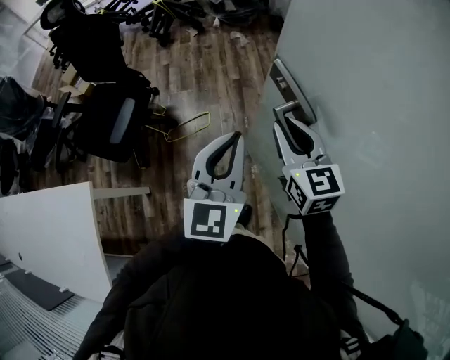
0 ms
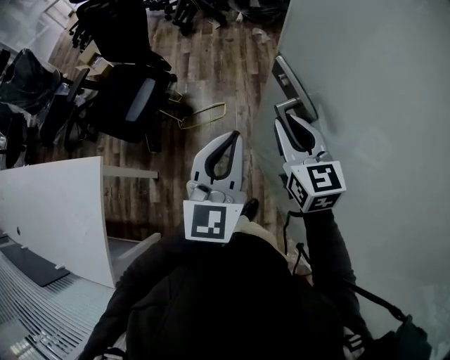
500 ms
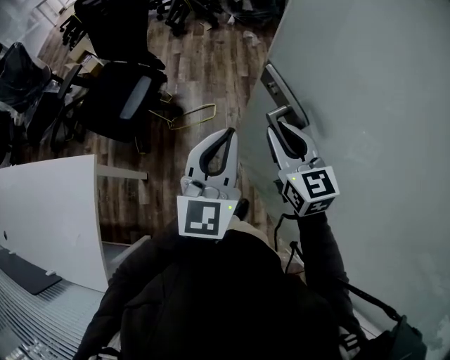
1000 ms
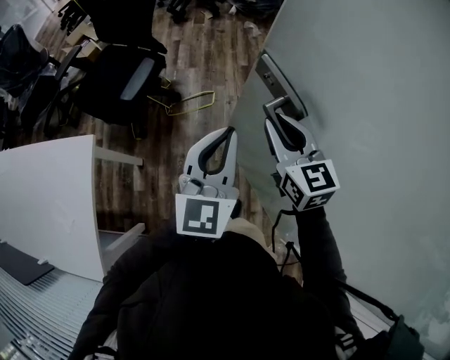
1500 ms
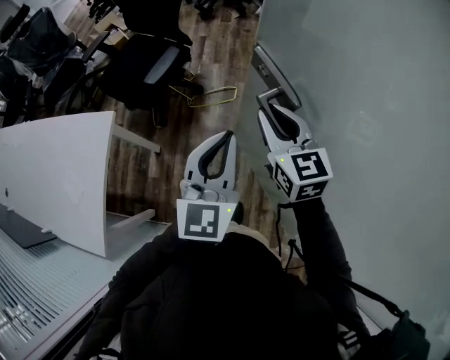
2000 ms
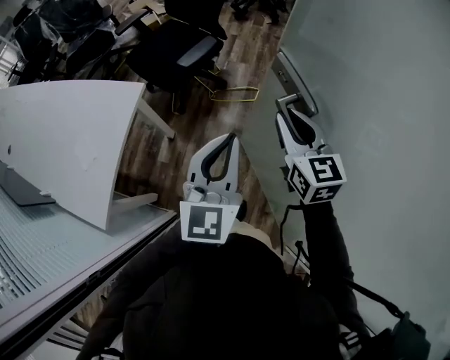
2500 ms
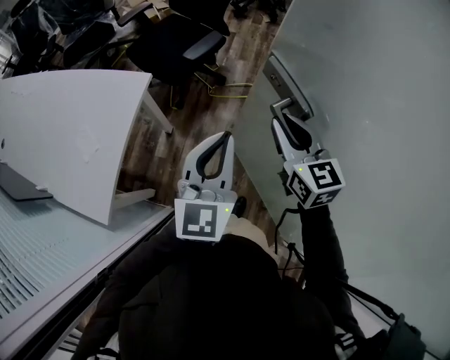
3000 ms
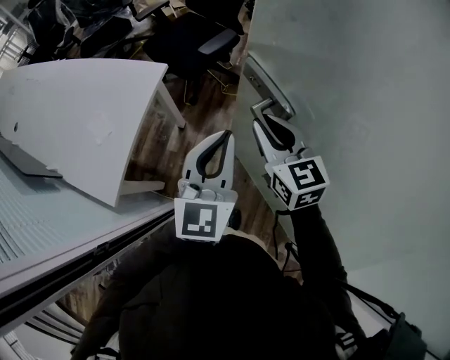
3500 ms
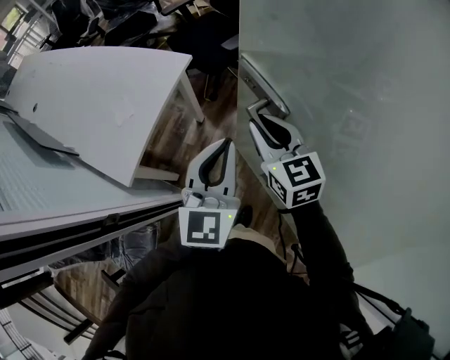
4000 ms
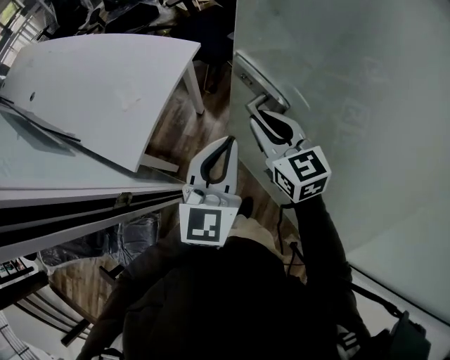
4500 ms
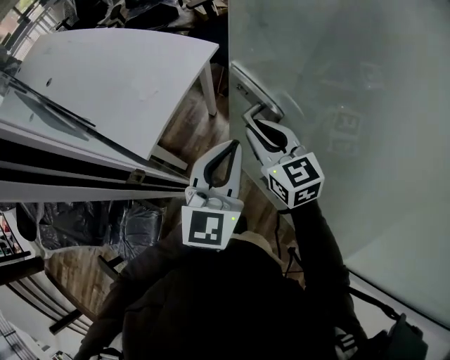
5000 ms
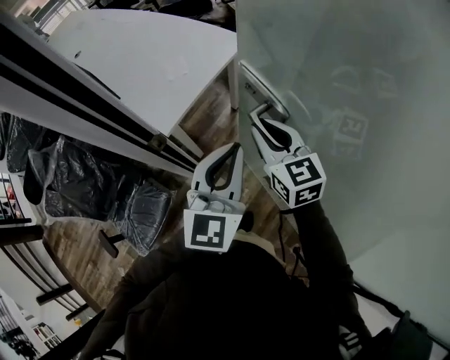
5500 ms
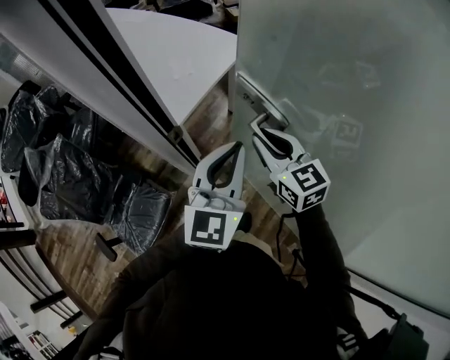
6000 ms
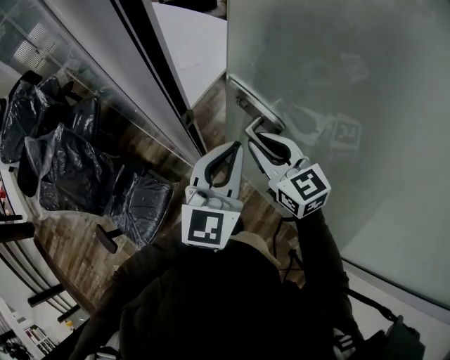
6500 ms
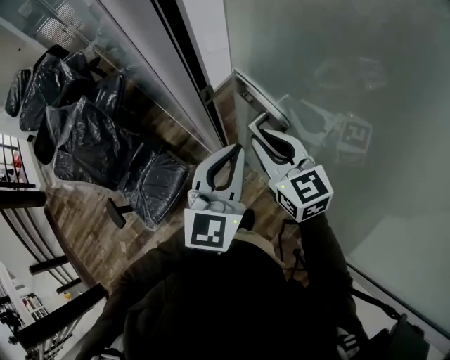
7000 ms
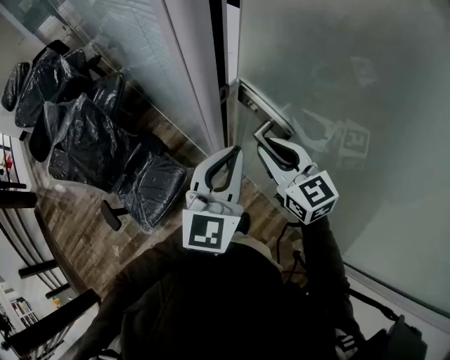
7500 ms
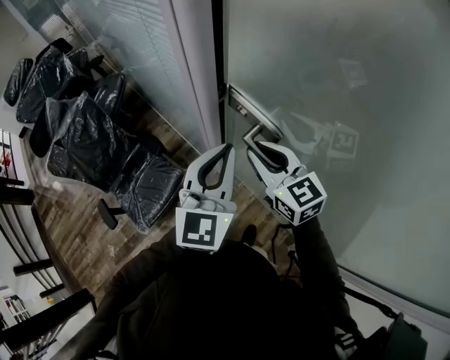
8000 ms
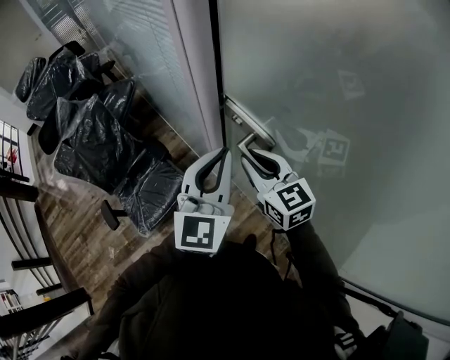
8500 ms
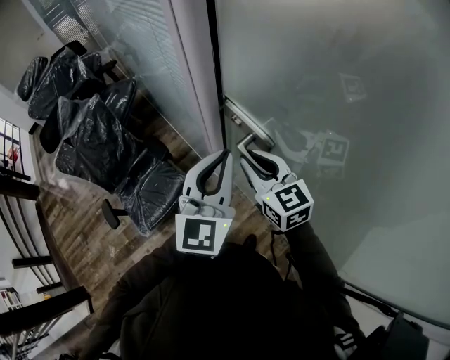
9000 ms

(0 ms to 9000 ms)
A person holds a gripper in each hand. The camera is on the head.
0 ms - 2000 ms: Both grippers travel together to the left and backward, some 25 cm.
2000 ms - 4500 ms: Both grippers move to the left and backward, approximately 35 cm. The right gripper swivels some 30 degrees.
4500 ms - 7000 ms: The grippers both shift to the left and backward by roughly 30 cm. The right gripper rotates approximately 20 degrees.
7000 ms - 9000 ms: The left gripper shifts by roughly 5 cm. The right gripper goes about 5 cm to the left.

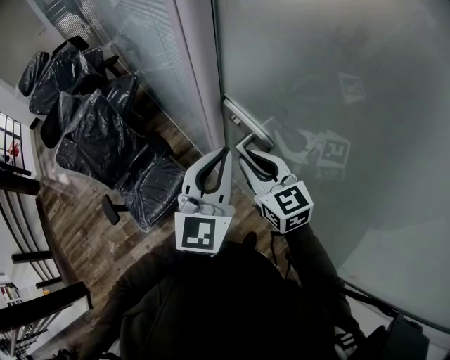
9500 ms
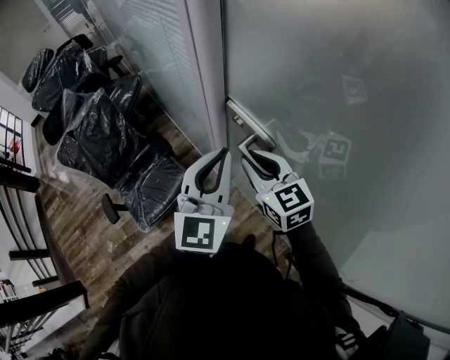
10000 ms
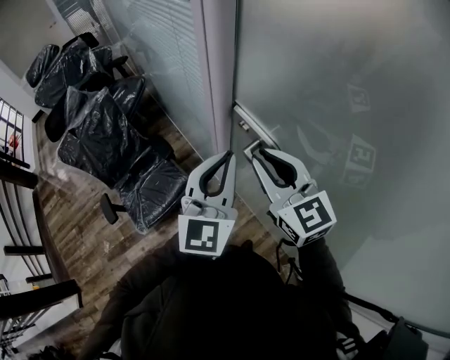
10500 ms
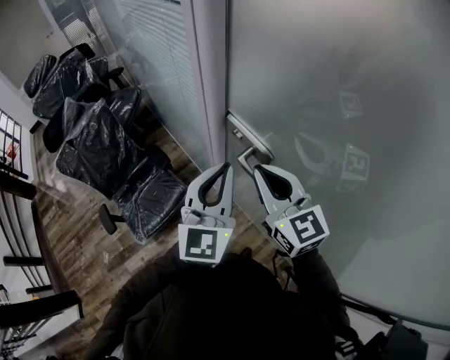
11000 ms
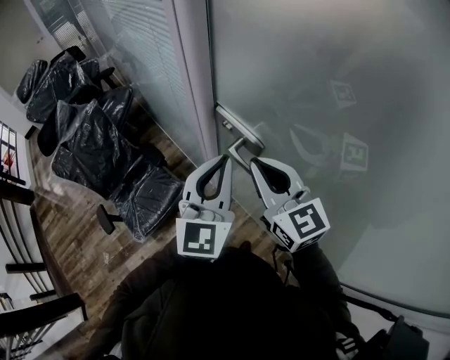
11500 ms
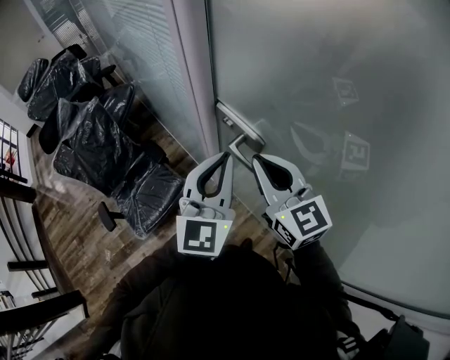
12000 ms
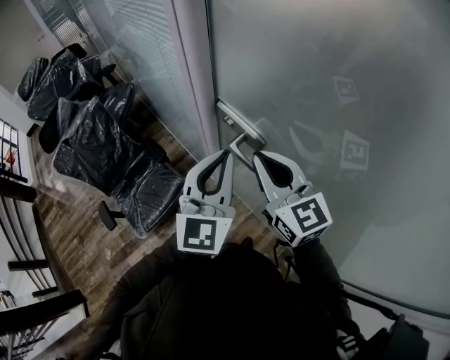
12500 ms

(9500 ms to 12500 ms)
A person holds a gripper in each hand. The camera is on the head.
9500 ms - 11000 ms: The right gripper travels upward by approximately 10 cm.
11000 ms - 12500 ms: There are only small adjustments of the grippers.

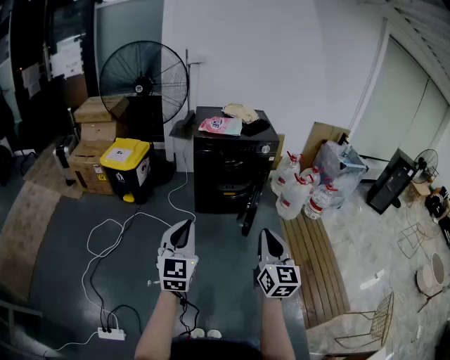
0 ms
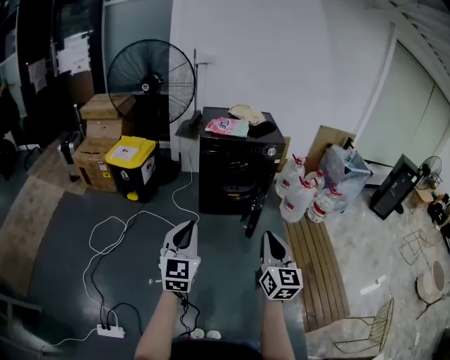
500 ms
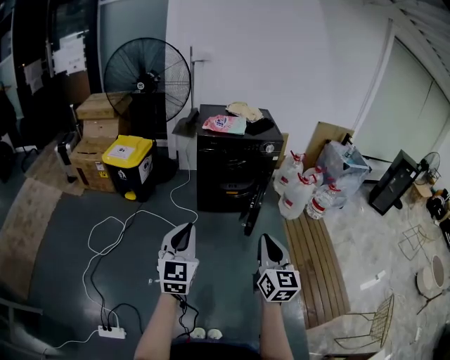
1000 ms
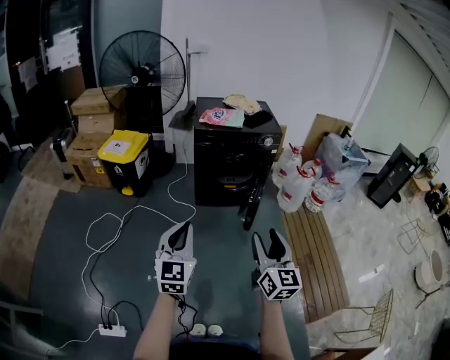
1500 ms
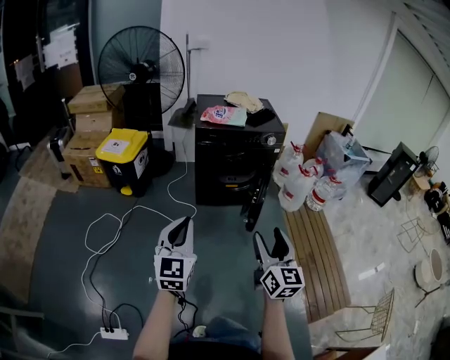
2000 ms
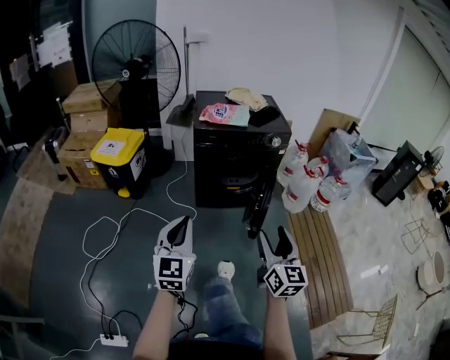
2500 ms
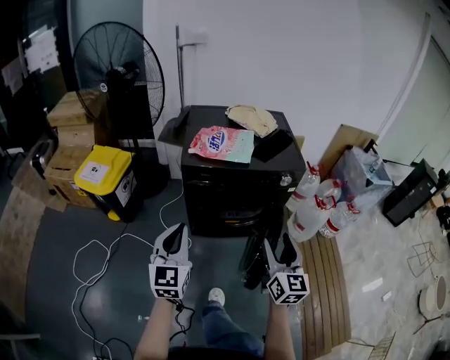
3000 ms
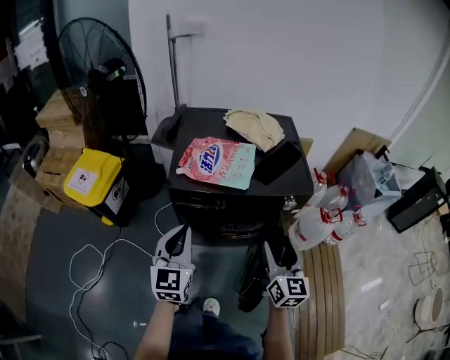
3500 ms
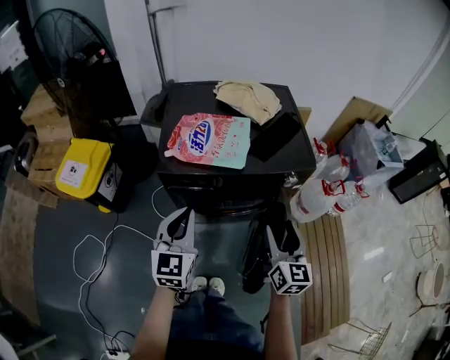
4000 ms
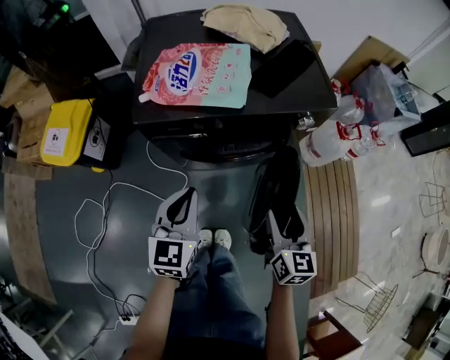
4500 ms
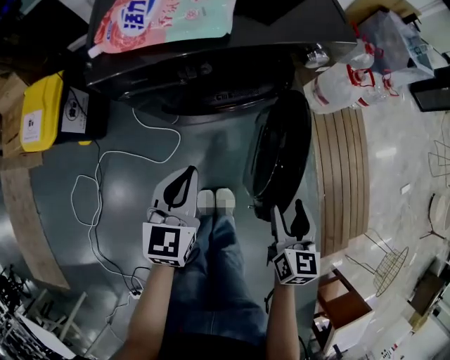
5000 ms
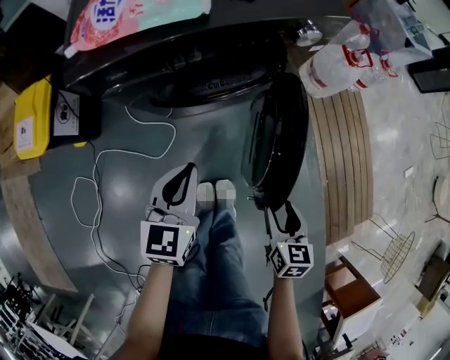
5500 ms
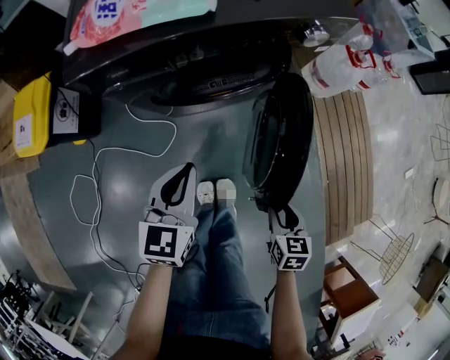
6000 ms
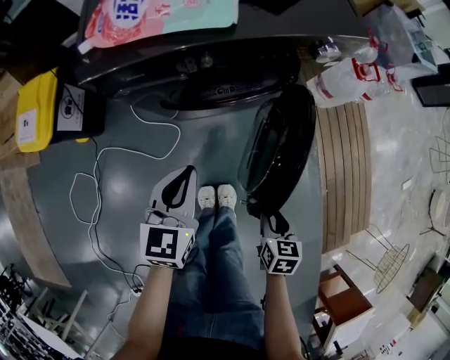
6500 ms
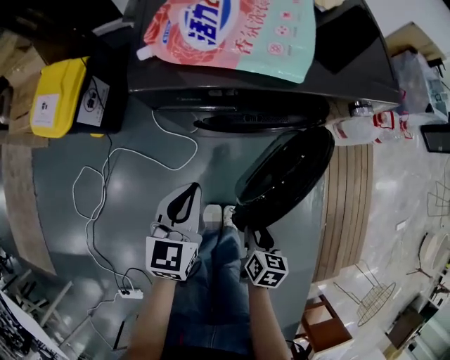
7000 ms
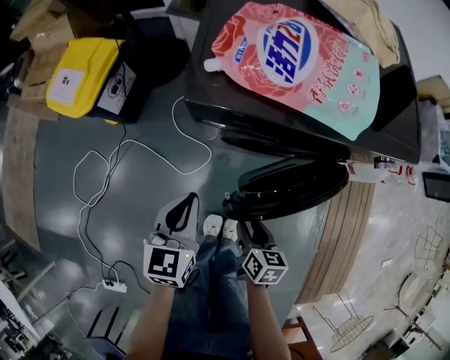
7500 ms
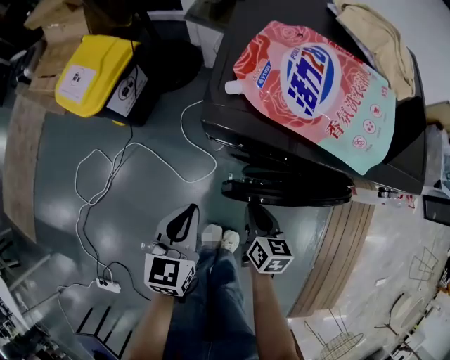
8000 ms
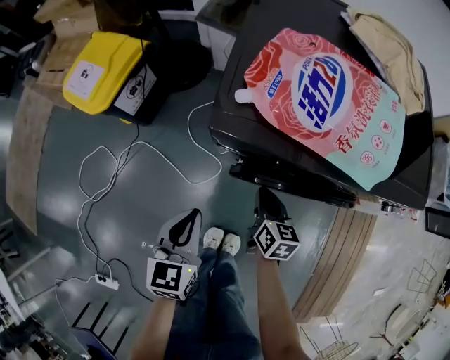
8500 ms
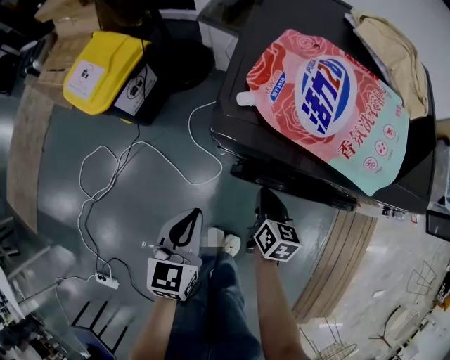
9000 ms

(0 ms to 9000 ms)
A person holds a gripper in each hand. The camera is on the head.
0 ms - 2000 ms: The left gripper changes place by approximately 5 cm; the right gripper moves about 5 cm, and opens up.
2000 ms - 4500 ms: Both grippers are carried forward, approximately 60 cm. The left gripper rotates some 20 degrees. Meanwhile the right gripper is displaced downward by about 20 cm, and turns by some 20 degrees.
4500 ms - 7000 ms: The right gripper goes some 25 cm downward and backward, angles its fingers downward, by roughly 30 degrees, and closes. The left gripper shifts roughly 10 cm downward.
7000 ms - 9000 ms: The left gripper travels to the left by approximately 10 cm, while the right gripper moves forward, some 30 cm, swivels approximately 20 degrees, and closes up.

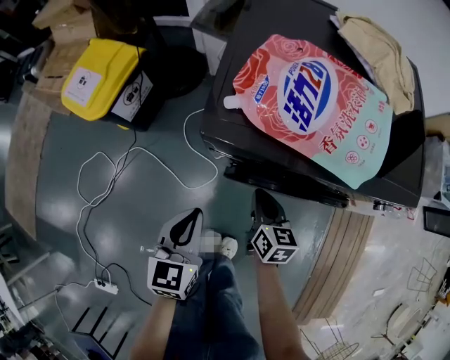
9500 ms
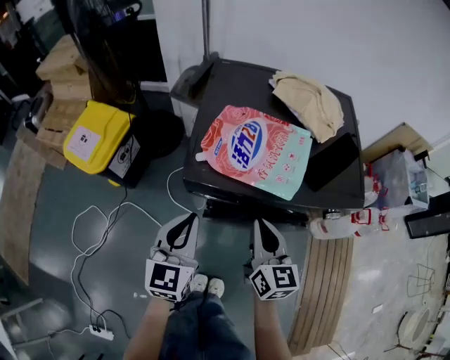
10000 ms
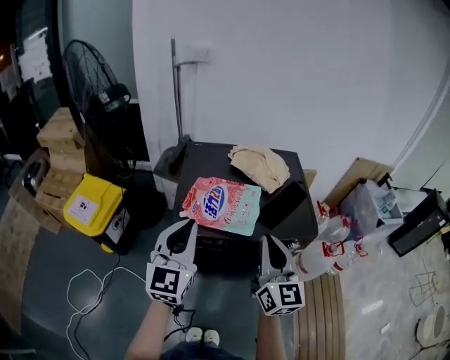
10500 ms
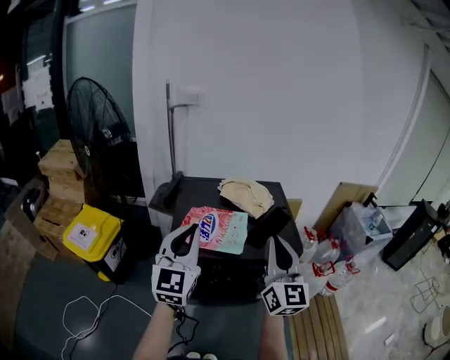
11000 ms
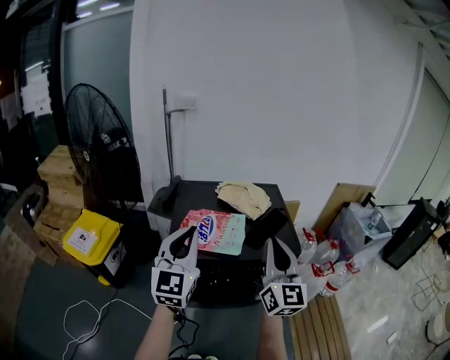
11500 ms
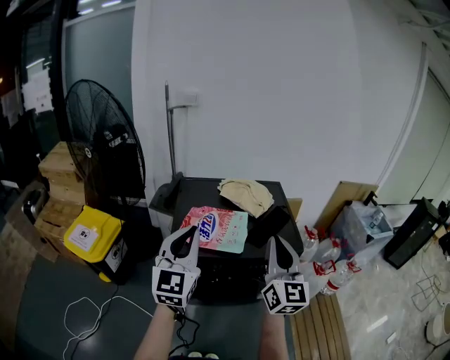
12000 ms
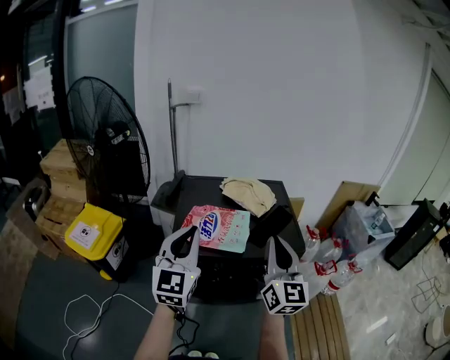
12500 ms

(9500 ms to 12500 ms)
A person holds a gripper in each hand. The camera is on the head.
9500 ms - 11000 ms: Both grippers travel together upward, roughly 50 cm. The right gripper angles its fingers upward, by some 50 degrees; the left gripper tips its fingers upward by approximately 40 degrees.
11000 ms - 12500 ms: The grippers make only small movements.

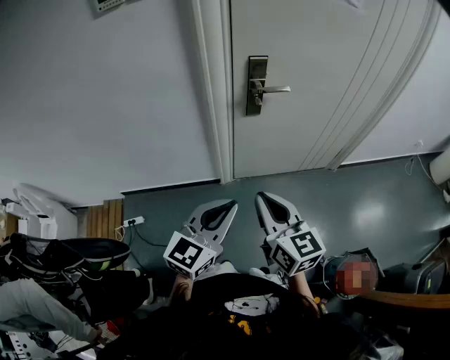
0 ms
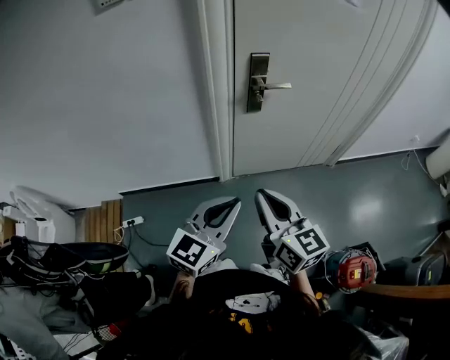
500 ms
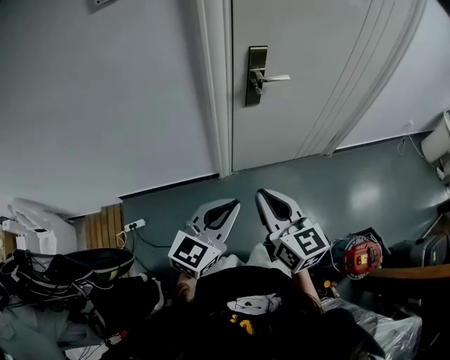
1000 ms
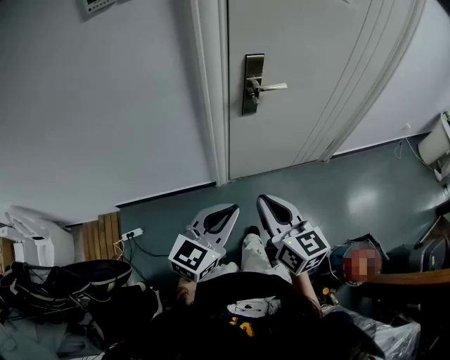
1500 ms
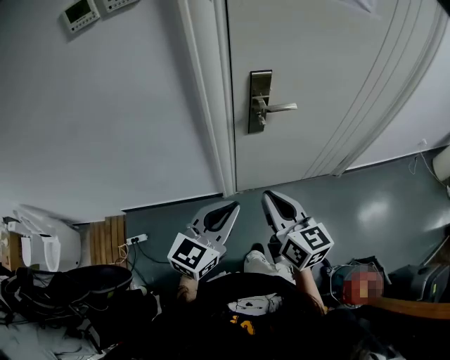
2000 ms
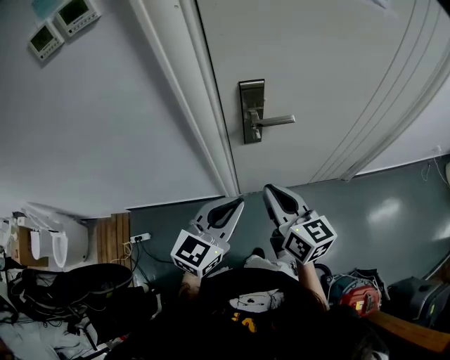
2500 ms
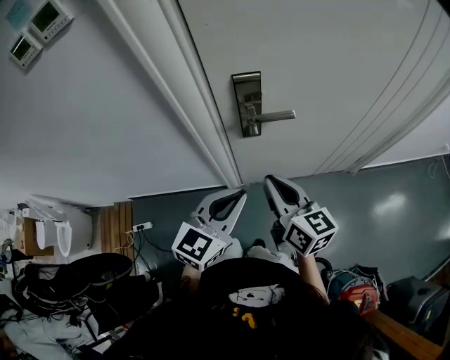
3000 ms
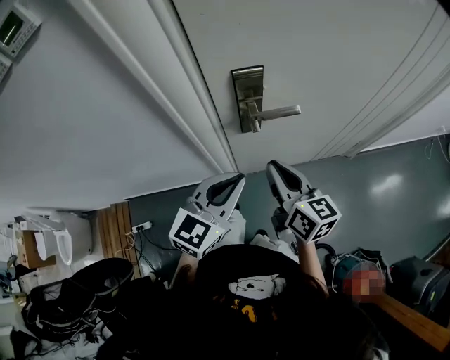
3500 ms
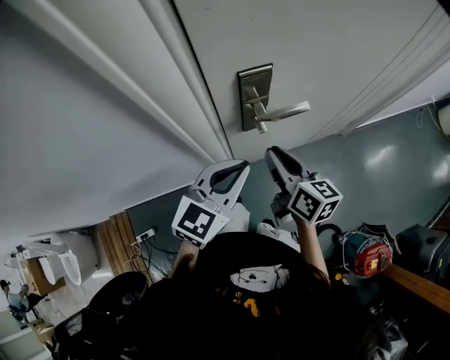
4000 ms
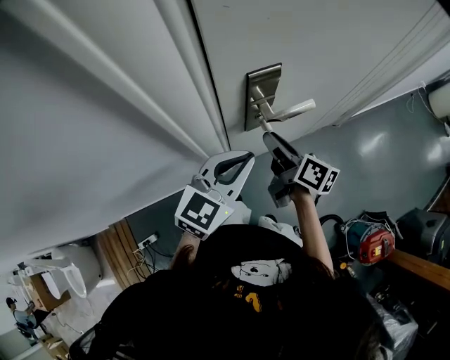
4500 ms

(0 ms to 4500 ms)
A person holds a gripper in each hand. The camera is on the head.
0 ms - 2000 ms: Both grippers move forward, some 10 cm.
2000 ms - 4500 ms: The right gripper is displaced forward and downward by roughly 30 cm, changes its angle by about 40 degrees, and opens. The left gripper goes some 25 cm forward, and swivels roughly 20 degrees.
